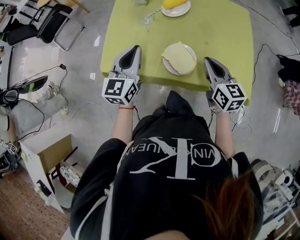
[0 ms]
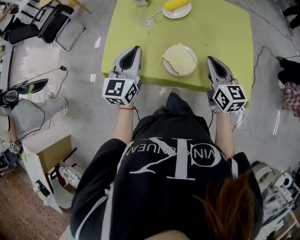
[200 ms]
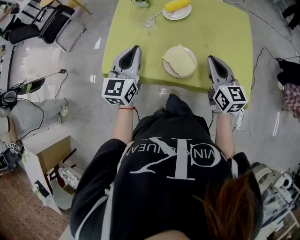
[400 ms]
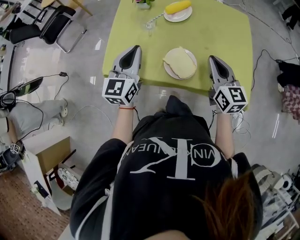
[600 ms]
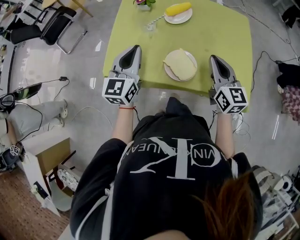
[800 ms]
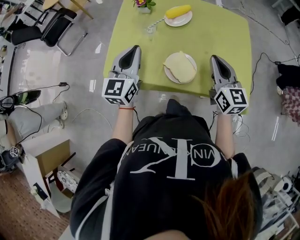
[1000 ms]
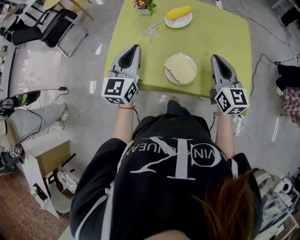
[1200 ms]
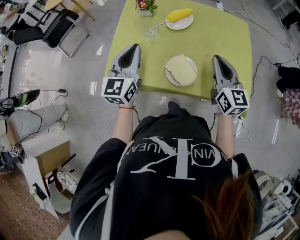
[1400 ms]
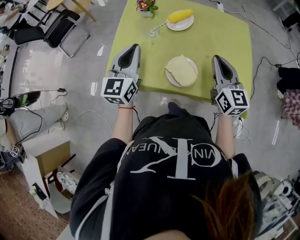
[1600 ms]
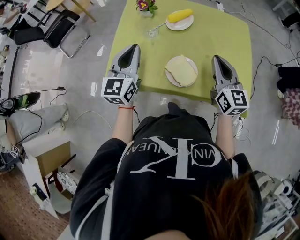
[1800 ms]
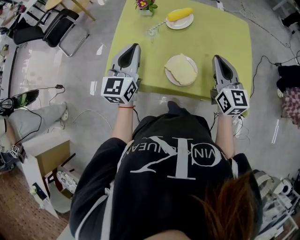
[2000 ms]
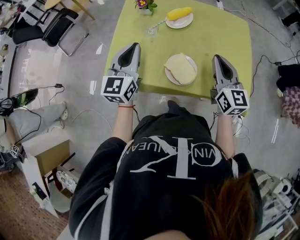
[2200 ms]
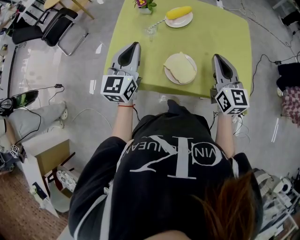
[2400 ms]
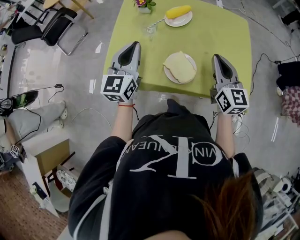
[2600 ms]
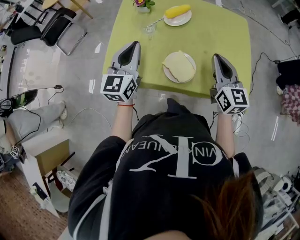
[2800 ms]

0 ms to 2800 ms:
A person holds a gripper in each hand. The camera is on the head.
0 ms to 1400 ms: The right gripper heads upward, covering roughly 5 cm; the left gripper moves approximately 5 cm.
1400 ms to 2800 ms: Both grippers stay put.

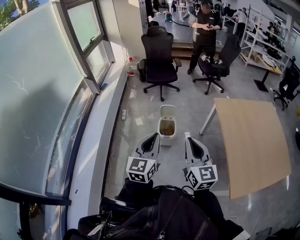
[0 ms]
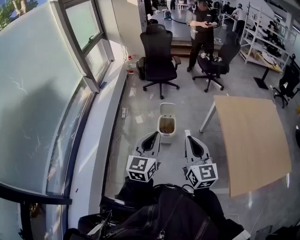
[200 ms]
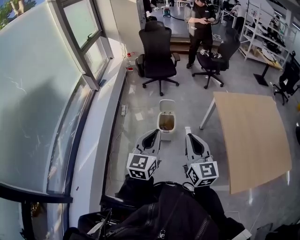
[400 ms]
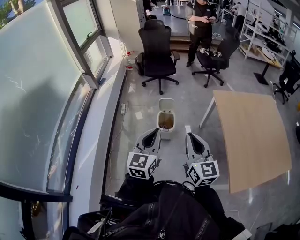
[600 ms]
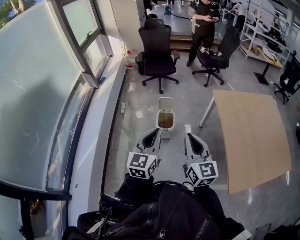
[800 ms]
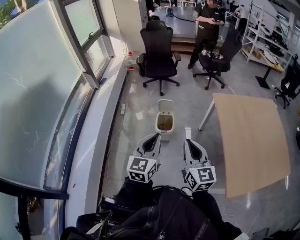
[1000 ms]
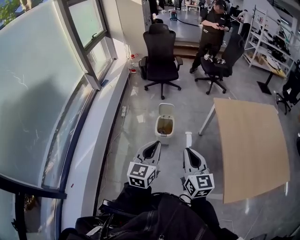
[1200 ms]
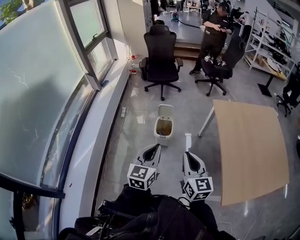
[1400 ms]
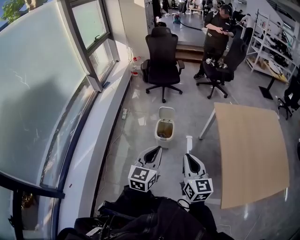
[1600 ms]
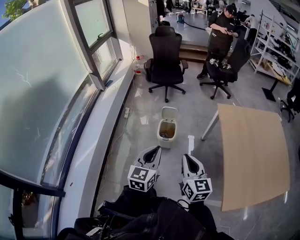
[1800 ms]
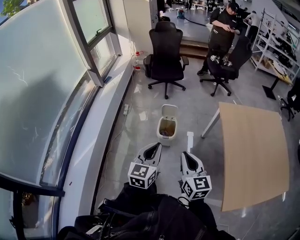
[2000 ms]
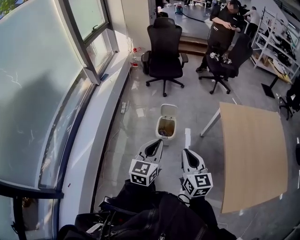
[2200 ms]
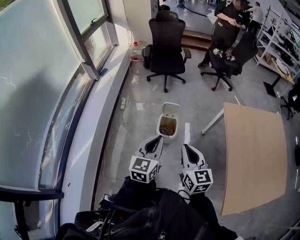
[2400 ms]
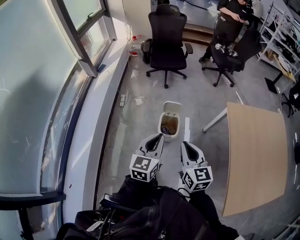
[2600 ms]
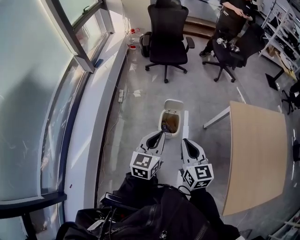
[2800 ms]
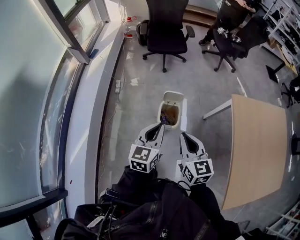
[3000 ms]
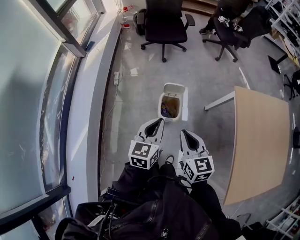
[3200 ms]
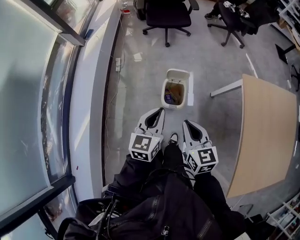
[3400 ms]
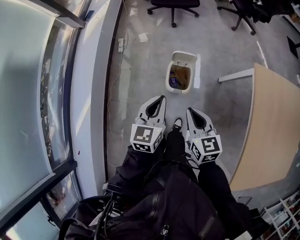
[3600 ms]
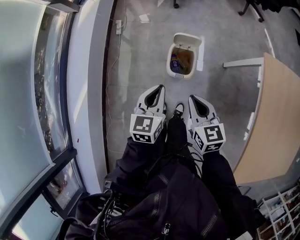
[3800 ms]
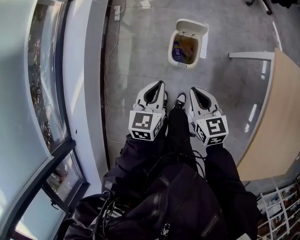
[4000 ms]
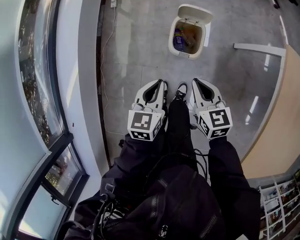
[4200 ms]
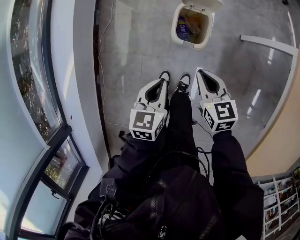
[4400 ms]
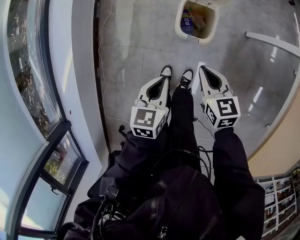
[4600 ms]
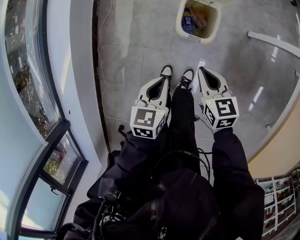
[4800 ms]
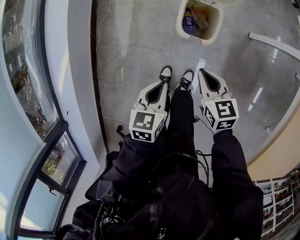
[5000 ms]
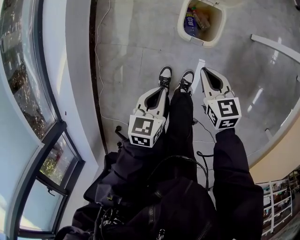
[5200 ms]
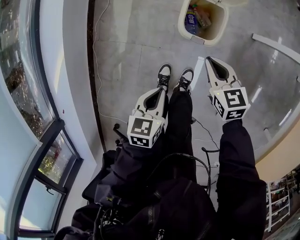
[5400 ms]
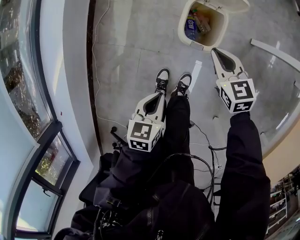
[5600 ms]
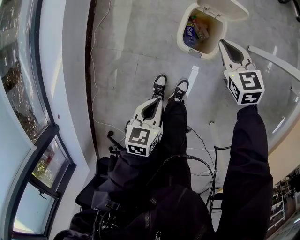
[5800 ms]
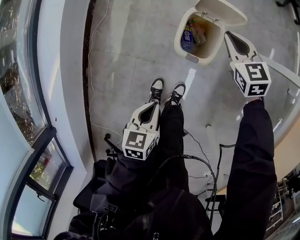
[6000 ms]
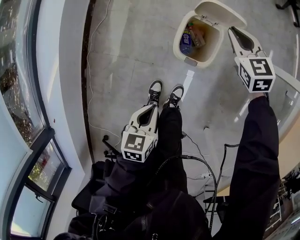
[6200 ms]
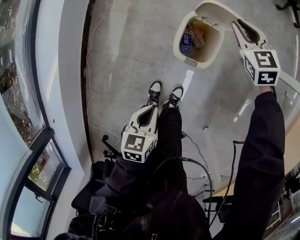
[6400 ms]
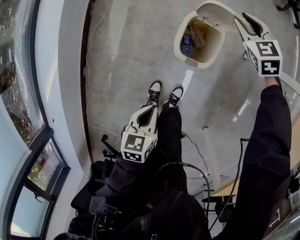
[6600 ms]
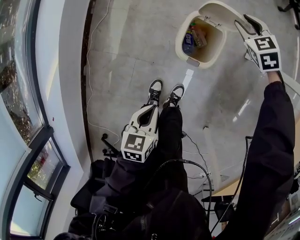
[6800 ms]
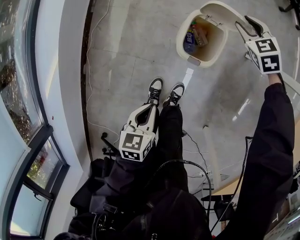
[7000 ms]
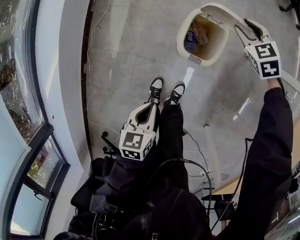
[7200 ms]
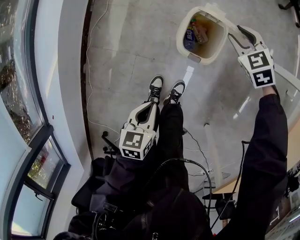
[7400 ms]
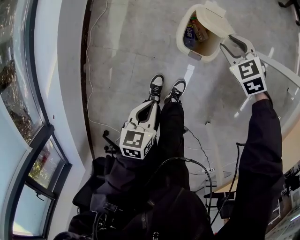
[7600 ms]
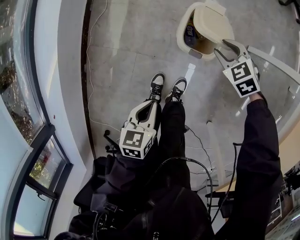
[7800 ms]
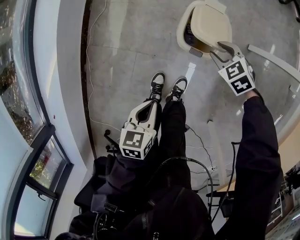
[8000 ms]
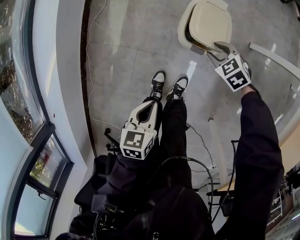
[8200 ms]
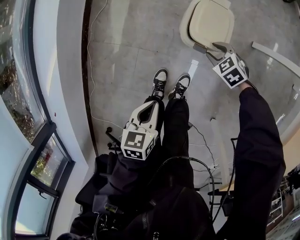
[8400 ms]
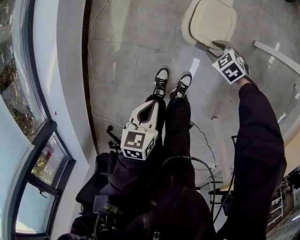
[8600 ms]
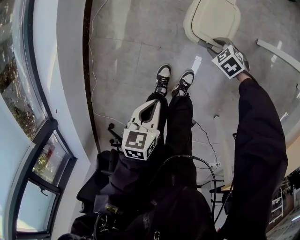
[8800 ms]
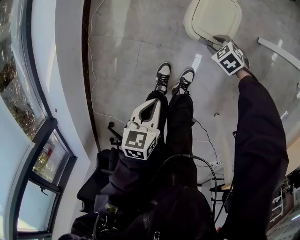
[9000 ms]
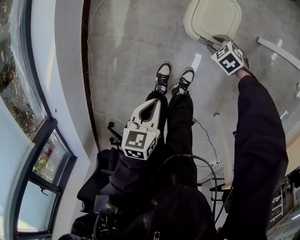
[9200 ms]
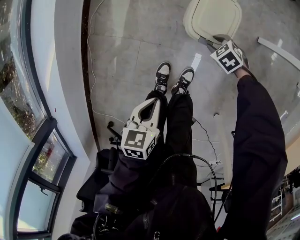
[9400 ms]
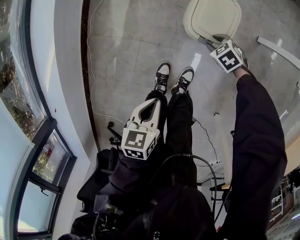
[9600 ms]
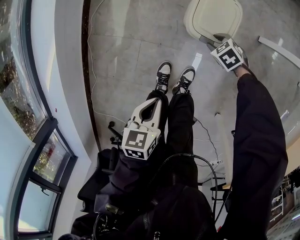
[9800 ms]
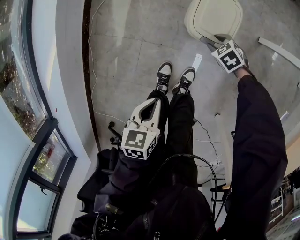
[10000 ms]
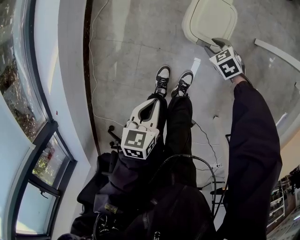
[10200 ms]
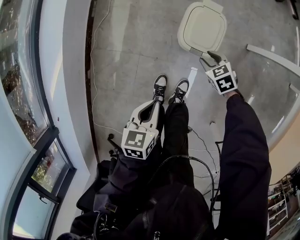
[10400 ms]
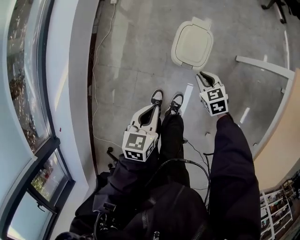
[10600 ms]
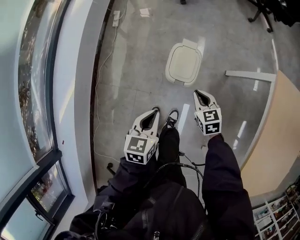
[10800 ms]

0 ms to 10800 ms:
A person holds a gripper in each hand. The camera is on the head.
0 ms to 1600 ms: The right gripper shifts roughly 10 cm downward and to the right. Meanwhile the left gripper heads to the right and downward, covering some 10 cm.
1600 ms to 3000 ms: The right gripper travels forward and to the left by approximately 30 cm, while the left gripper heads forward, covering approximately 30 cm.
3000 ms to 4600 ms: The two grippers go roughly 40 cm downward. The right gripper turns by roughly 30 degrees. Meanwhile the left gripper swivels roughly 30 degrees.
4600 ms to 6200 ms: The right gripper shifts approximately 25 cm forward, and rotates about 30 degrees. The left gripper shifts roughly 10 cm downward.
6200 ms to 7800 ms: The right gripper heads backward and downward, covering roughly 15 cm, swivels roughly 30 degrees, and opens.
7800 ms to 9200 ms: The right gripper goes roughly 15 cm downward and backward.
9200 ms to 10800 ms: The left gripper is displaced upward by approximately 15 cm, and turns by approximately 20 degrees. Meanwhile the right gripper moves upward, about 30 cm, swivels about 50 degrees, and closes up.

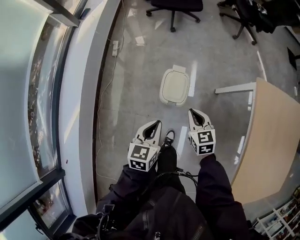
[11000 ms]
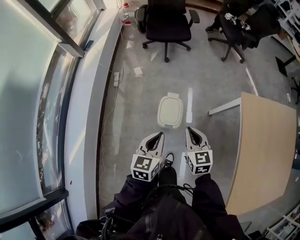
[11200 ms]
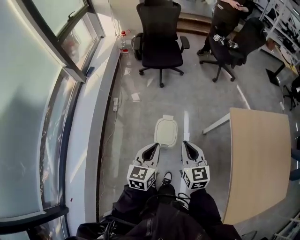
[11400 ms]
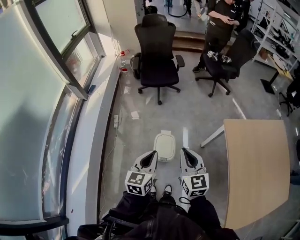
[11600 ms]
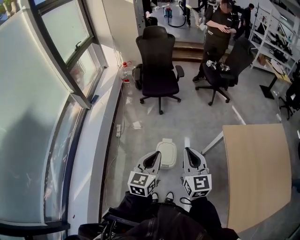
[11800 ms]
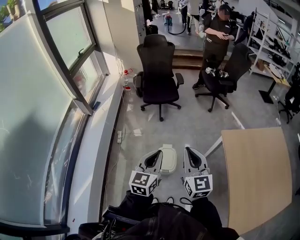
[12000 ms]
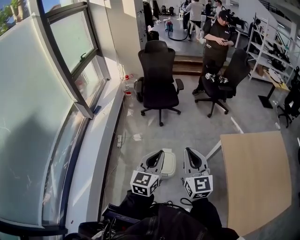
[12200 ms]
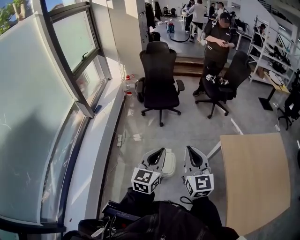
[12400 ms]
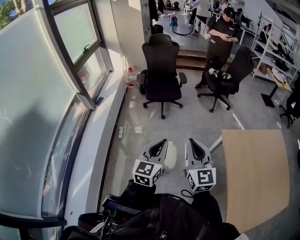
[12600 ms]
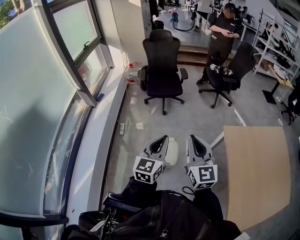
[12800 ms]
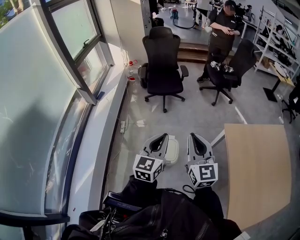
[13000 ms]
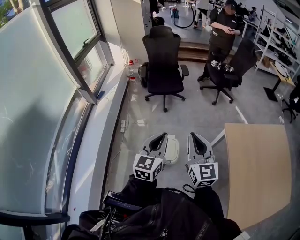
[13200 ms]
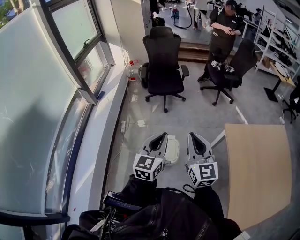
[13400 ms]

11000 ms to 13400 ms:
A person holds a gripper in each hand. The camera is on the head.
11000 ms to 12200 ms: Both grippers travel together upward, some 40 cm. The left gripper swivels approximately 30 degrees. Meanwhile the right gripper tilts its fingers roughly 40 degrees upward.
12200 ms to 13400 ms: The grippers stay close to where they were, moving slightly.

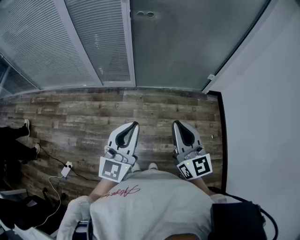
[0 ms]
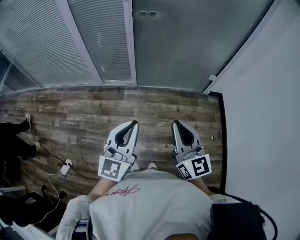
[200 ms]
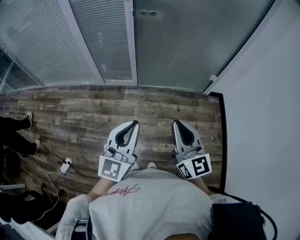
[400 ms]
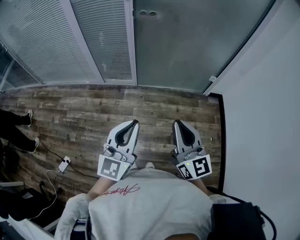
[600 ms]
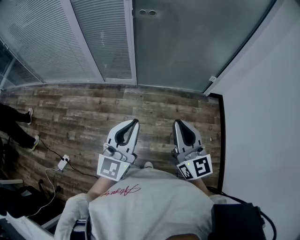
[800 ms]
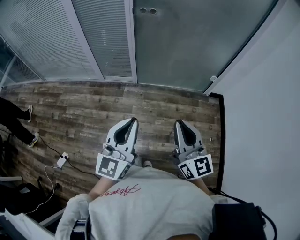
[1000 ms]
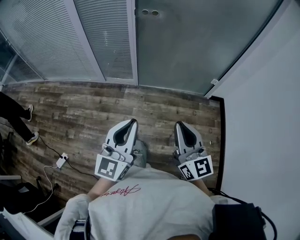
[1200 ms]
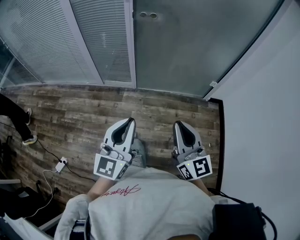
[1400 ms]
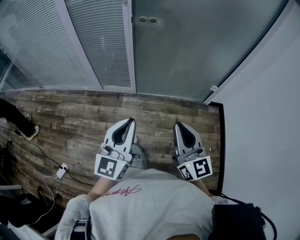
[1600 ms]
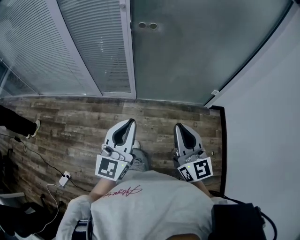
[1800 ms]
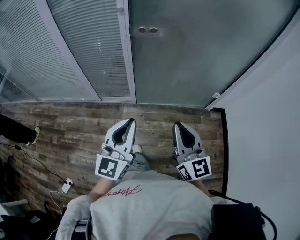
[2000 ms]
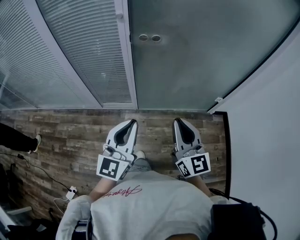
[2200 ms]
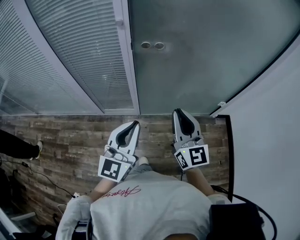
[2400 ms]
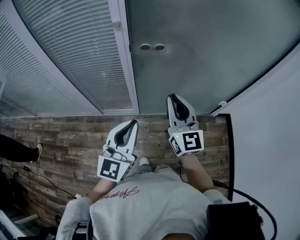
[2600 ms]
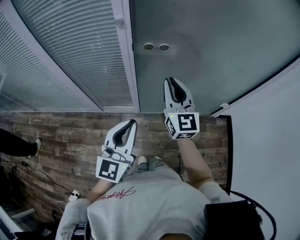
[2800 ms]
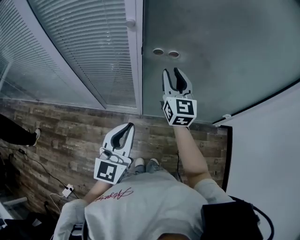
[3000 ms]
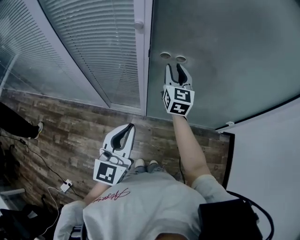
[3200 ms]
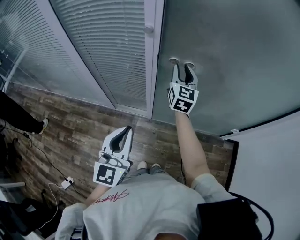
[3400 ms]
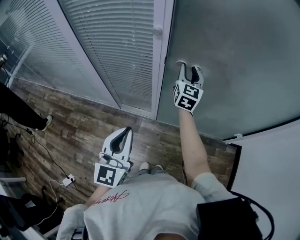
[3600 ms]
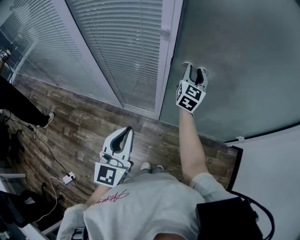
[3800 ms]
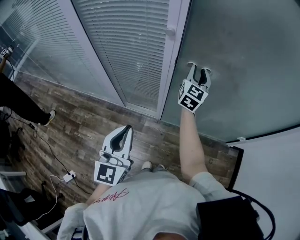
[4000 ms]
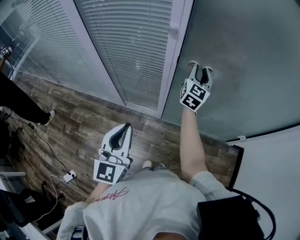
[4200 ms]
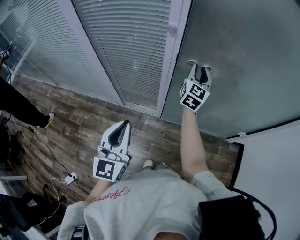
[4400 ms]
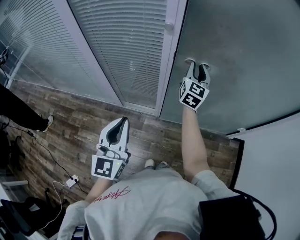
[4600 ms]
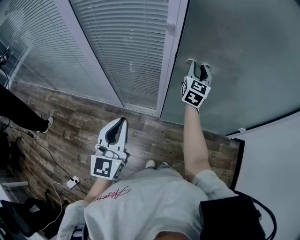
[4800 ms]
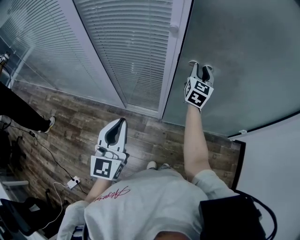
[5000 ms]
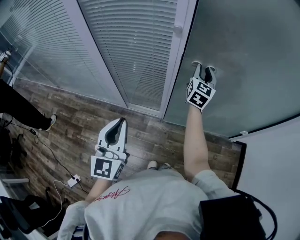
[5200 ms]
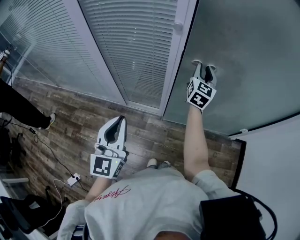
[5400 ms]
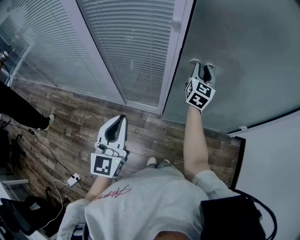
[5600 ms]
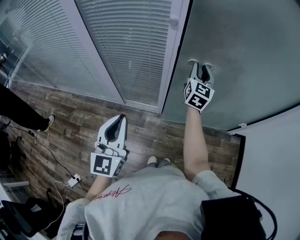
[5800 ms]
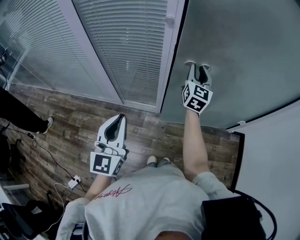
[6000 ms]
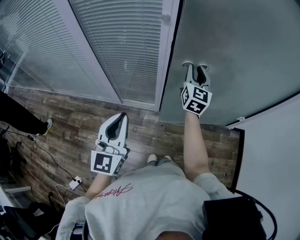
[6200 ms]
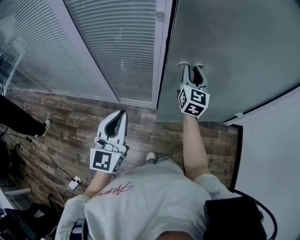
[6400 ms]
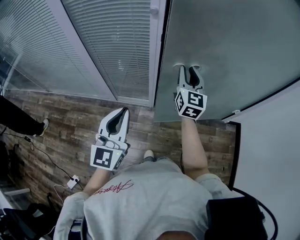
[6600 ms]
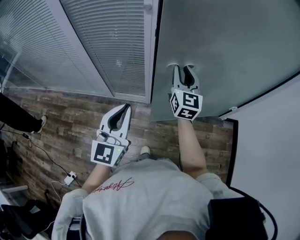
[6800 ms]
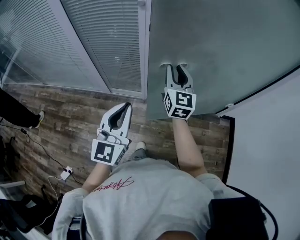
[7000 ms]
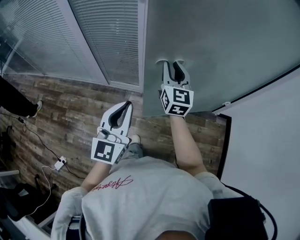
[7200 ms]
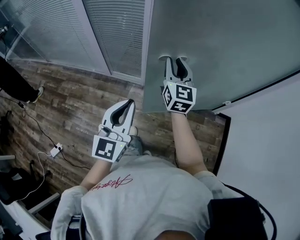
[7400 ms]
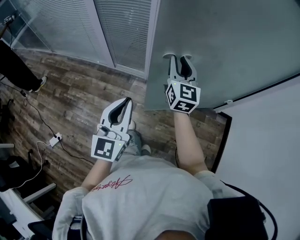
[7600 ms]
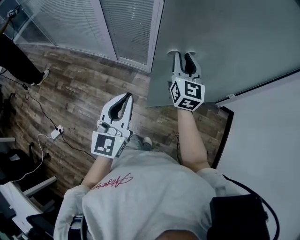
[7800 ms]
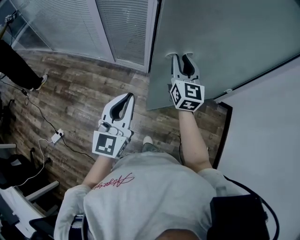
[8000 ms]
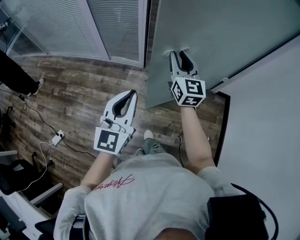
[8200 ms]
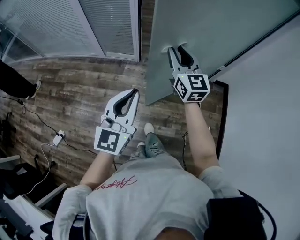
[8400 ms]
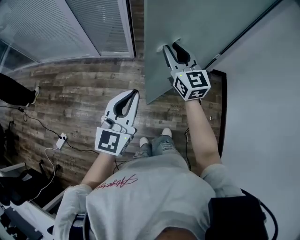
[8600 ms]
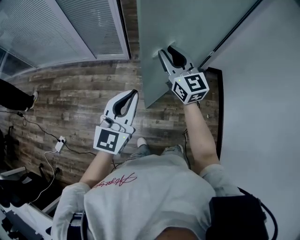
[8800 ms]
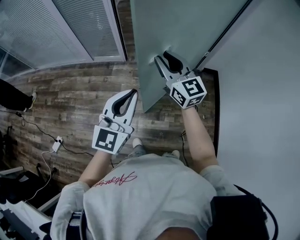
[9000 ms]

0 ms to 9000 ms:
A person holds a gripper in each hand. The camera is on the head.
0 ms to 1600 ms: Both grippers move forward, roughly 10 cm.
1600 ms to 3000 ms: The left gripper heads forward, covering about 30 cm; the right gripper travels forward by some 50 cm, and opens.
3000 ms to 4400 ms: The right gripper moves forward, some 10 cm. Meanwhile the left gripper is displaced to the left by about 10 cm.
4400 ms to 6000 ms: The right gripper travels backward by about 5 cm.
6000 ms to 7600 ms: The right gripper goes about 25 cm backward, and rotates approximately 20 degrees, while the left gripper heads to the right and backward, covering some 25 cm.
7600 ms to 9000 ms: Both grippers travel together backward and to the right, some 25 cm. The left gripper turns by approximately 20 degrees.
